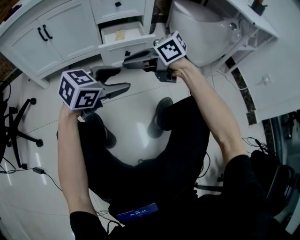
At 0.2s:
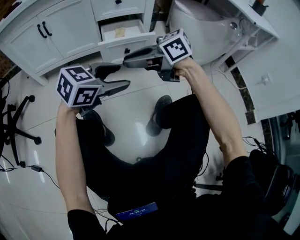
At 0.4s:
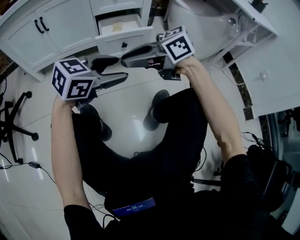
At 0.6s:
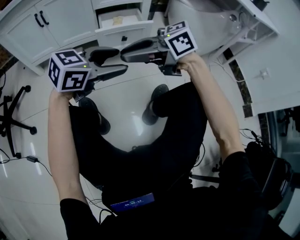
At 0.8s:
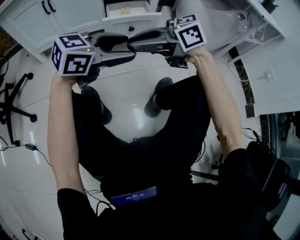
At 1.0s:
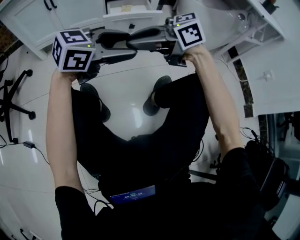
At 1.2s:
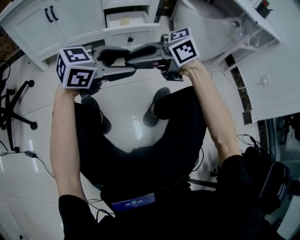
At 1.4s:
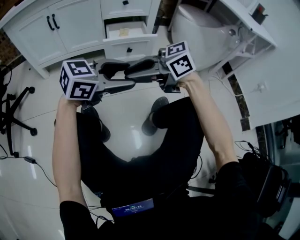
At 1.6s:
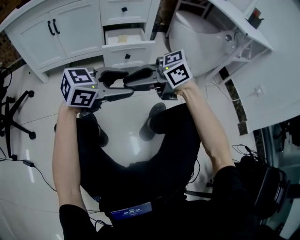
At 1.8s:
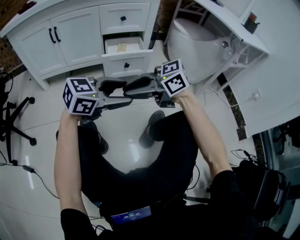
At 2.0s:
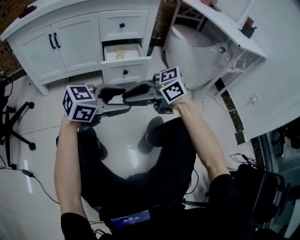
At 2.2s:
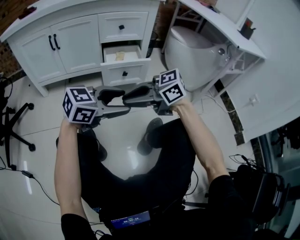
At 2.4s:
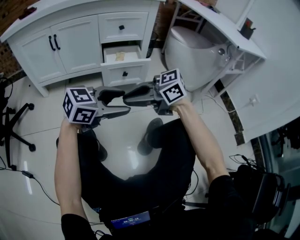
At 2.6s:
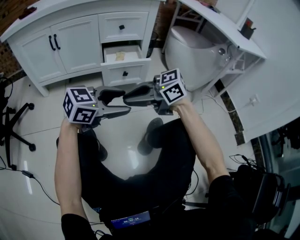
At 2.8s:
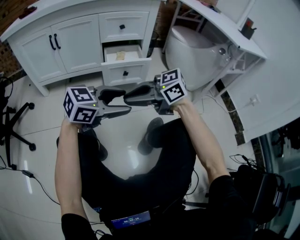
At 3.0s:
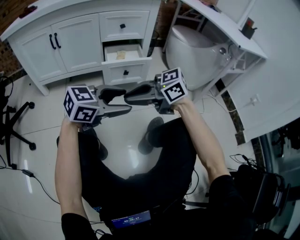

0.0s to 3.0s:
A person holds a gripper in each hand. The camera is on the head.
0.0s to 1.6s: The right gripper shifts by some 10 cm. The left gripper shifts by about 5 cm.
1.6s to 3.0s: The two grippers keep their place.

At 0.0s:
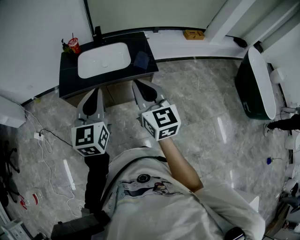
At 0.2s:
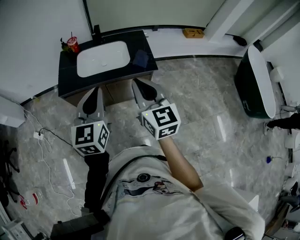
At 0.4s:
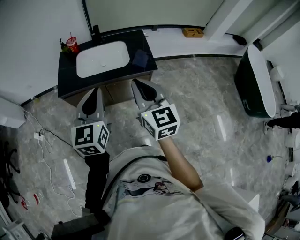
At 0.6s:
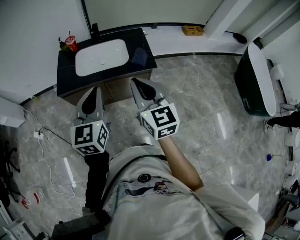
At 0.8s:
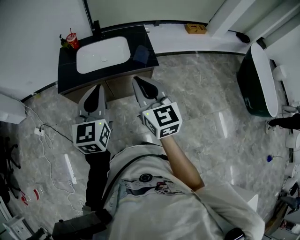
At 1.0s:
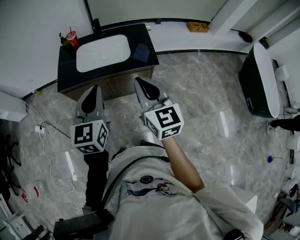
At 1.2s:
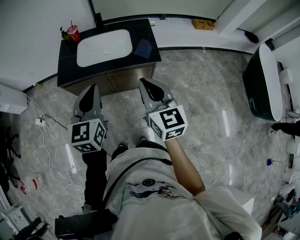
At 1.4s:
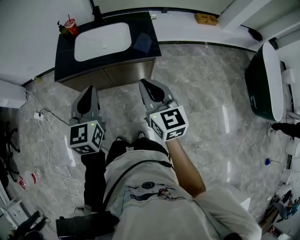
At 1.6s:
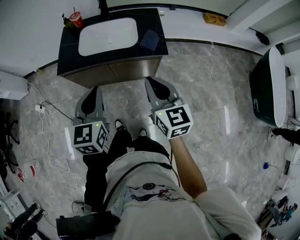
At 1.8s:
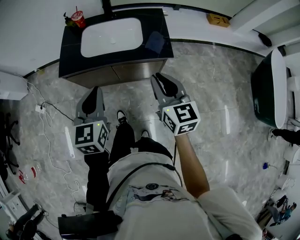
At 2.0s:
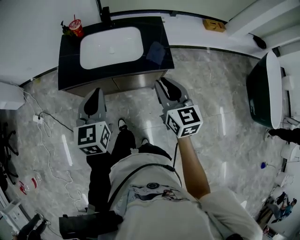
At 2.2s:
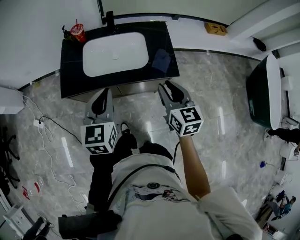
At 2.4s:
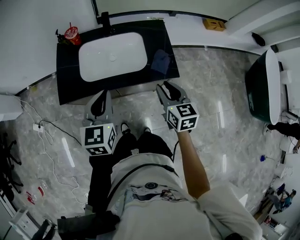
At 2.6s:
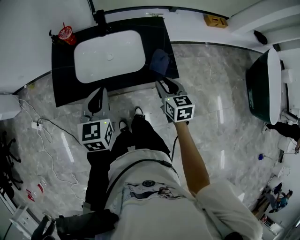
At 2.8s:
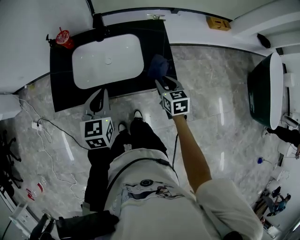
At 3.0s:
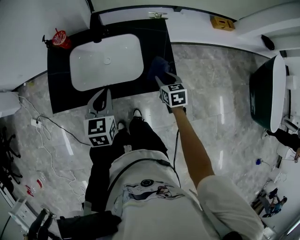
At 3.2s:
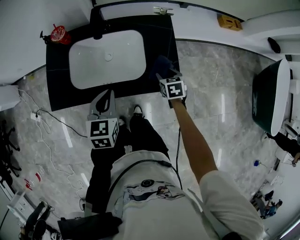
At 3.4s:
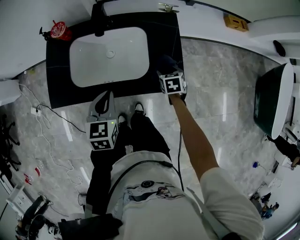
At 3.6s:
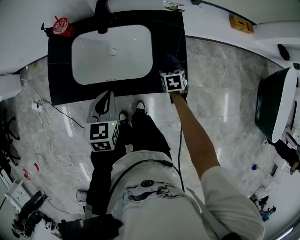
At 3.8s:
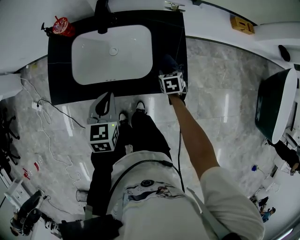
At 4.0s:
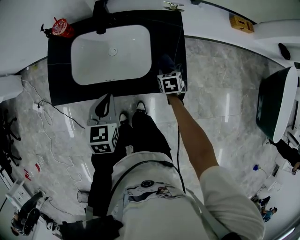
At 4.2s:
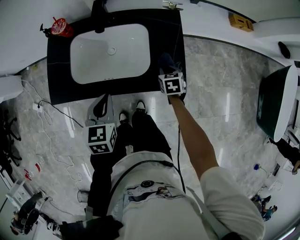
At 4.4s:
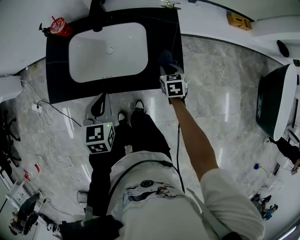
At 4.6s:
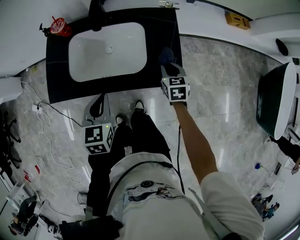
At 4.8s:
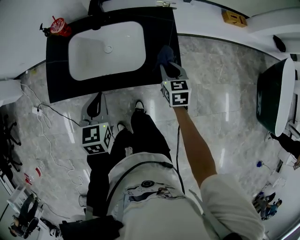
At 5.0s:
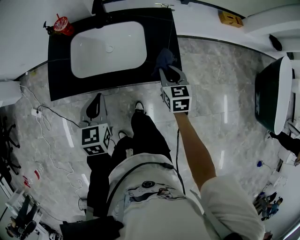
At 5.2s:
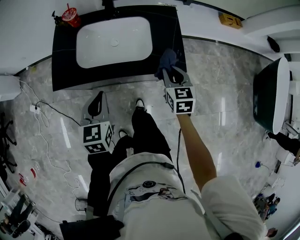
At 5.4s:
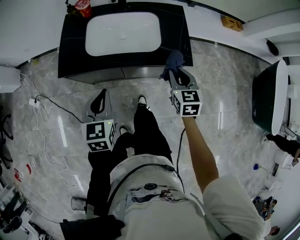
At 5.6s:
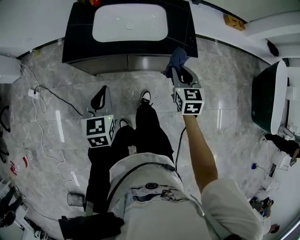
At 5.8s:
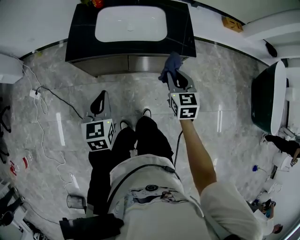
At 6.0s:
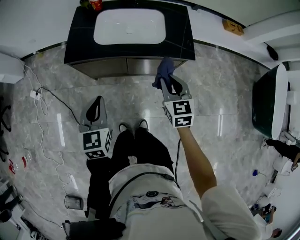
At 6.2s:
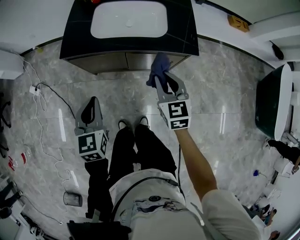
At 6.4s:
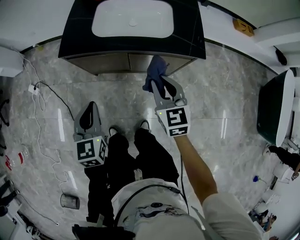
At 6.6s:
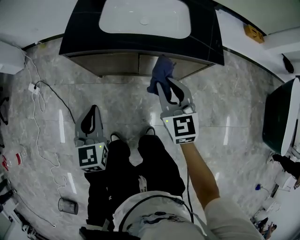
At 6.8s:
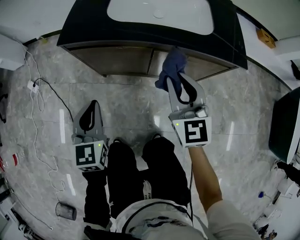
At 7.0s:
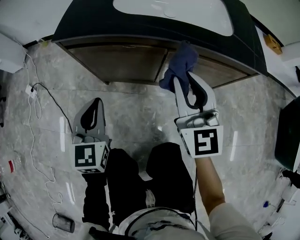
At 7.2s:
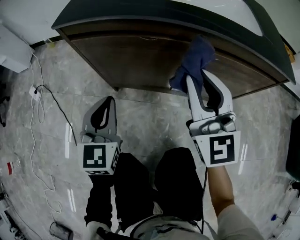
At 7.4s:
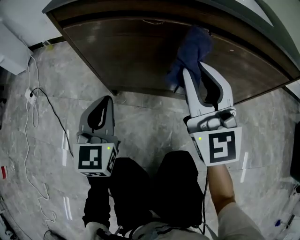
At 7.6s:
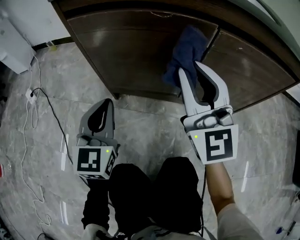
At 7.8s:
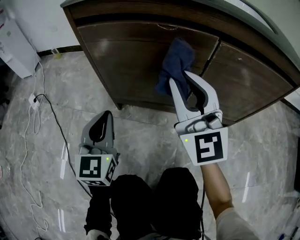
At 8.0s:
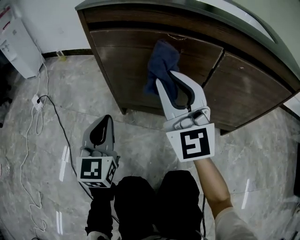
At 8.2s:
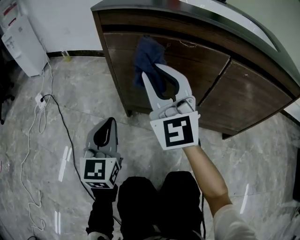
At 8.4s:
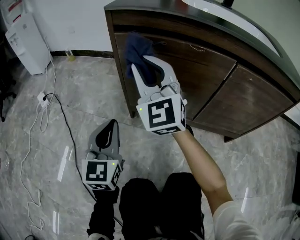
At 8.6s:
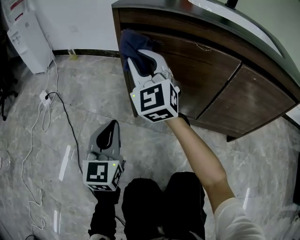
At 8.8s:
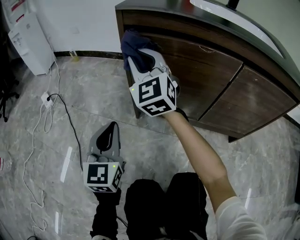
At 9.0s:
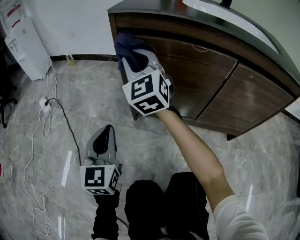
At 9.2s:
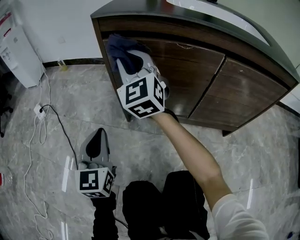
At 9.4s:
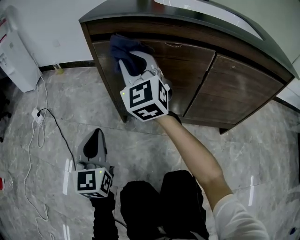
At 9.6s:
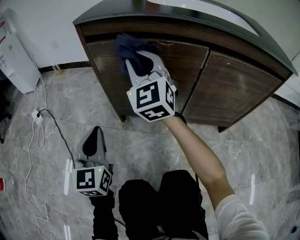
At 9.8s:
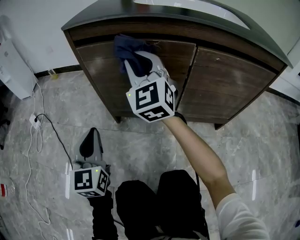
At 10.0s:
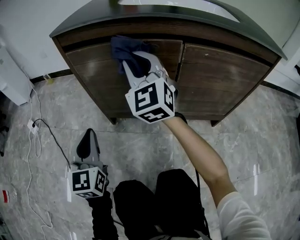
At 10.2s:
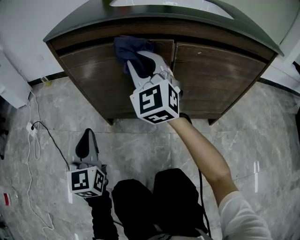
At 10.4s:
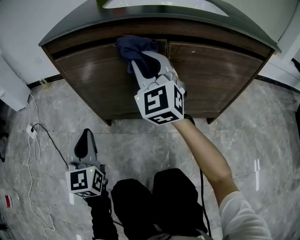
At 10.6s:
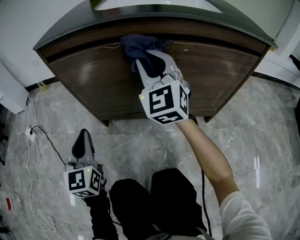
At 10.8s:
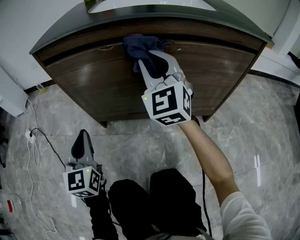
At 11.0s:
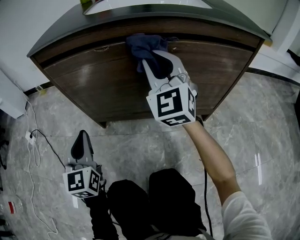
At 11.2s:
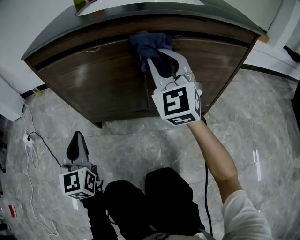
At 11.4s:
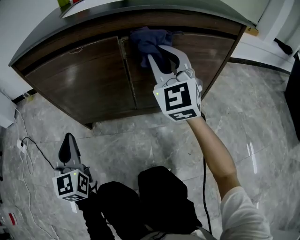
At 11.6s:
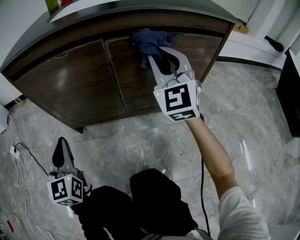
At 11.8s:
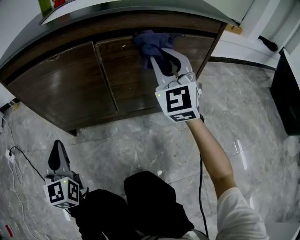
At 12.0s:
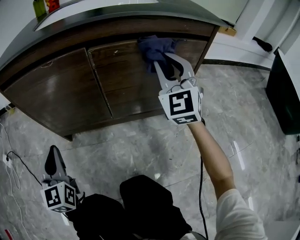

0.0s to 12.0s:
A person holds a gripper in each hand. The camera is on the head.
0.0s to 1.6s: The right gripper travels downward and to the right by roughly 10 cm; the left gripper is displaced downward by some 10 cm.
1.6s to 3.0s: The grippers both shift forward and downward by some 35 cm. The right gripper tips its fingers downward by approximately 30 degrees, and opens its fingers.
3.0s to 4.4s: The right gripper is displaced downward by about 5 cm, and opens, then closes once more.
4.4s to 6.0s: The left gripper travels backward and to the left by about 25 cm. The right gripper goes some 35 cm backward, upward and to the left, and turns by some 30 degrees.
6.0s to 7.6s: The left gripper moves downward, about 40 cm, while the right gripper goes approximately 35 cm downward and to the left, and tips its fingers upward by about 40 degrees.
7.6s to 9.0s: The left gripper is displaced to the left by some 15 cm. Meanwhile the right gripper moves to the left and forward, some 30 cm.
9.0s to 10.4s: The right gripper moves to the right, roughly 25 cm, while the left gripper travels to the right by approximately 10 cm.
10.4s to 12.0s: The right gripper is displaced to the right by roughly 25 cm. The left gripper moves to the right, about 5 cm.

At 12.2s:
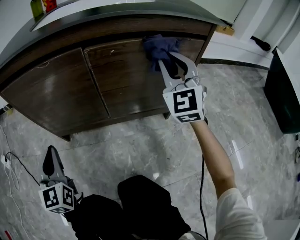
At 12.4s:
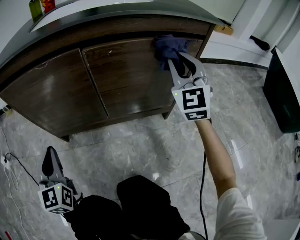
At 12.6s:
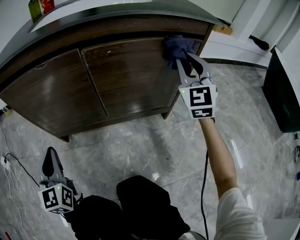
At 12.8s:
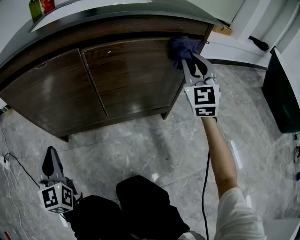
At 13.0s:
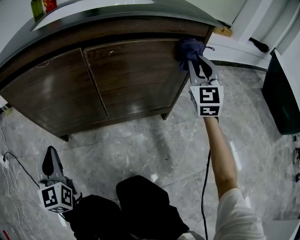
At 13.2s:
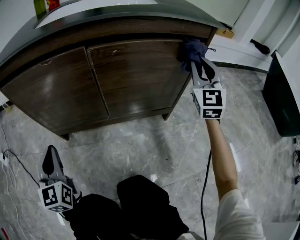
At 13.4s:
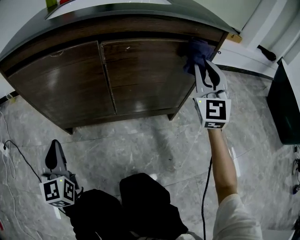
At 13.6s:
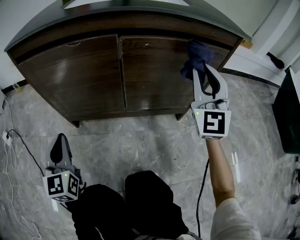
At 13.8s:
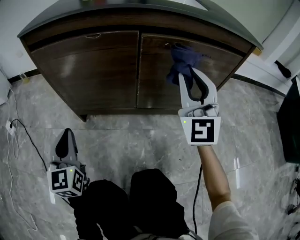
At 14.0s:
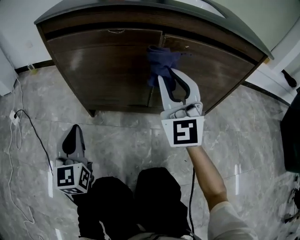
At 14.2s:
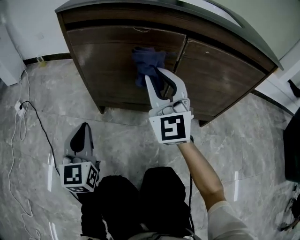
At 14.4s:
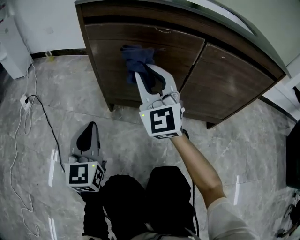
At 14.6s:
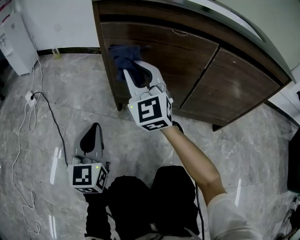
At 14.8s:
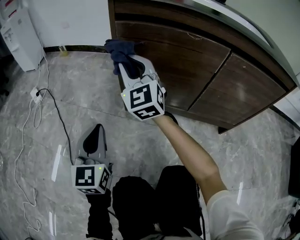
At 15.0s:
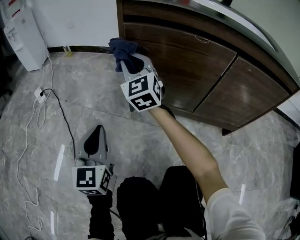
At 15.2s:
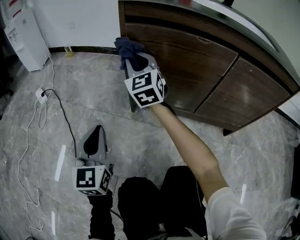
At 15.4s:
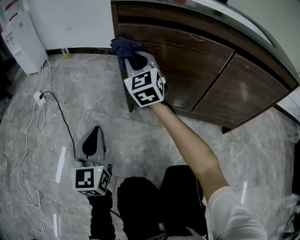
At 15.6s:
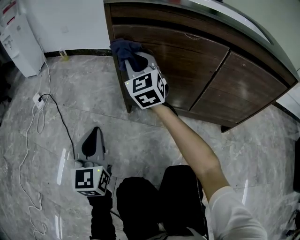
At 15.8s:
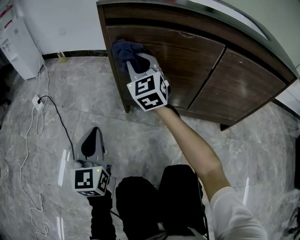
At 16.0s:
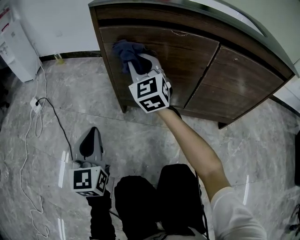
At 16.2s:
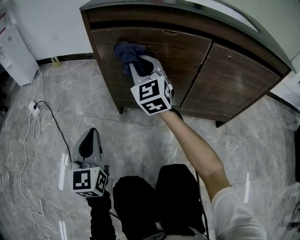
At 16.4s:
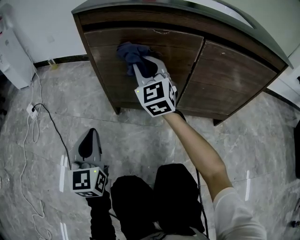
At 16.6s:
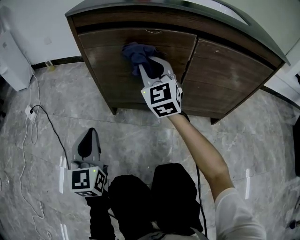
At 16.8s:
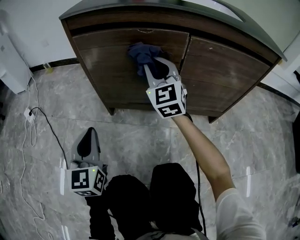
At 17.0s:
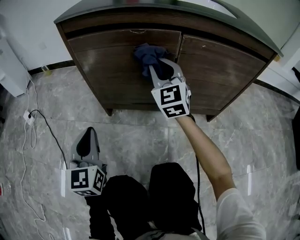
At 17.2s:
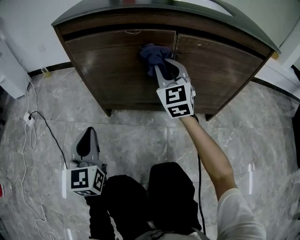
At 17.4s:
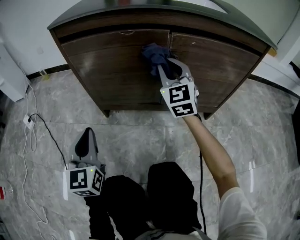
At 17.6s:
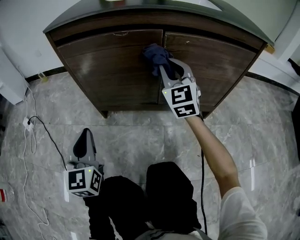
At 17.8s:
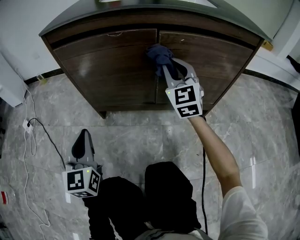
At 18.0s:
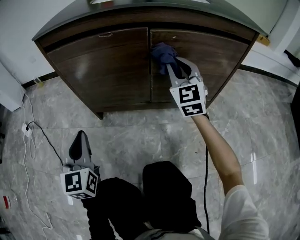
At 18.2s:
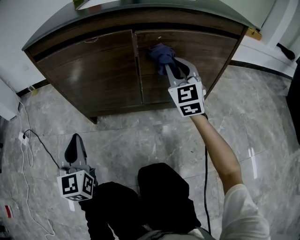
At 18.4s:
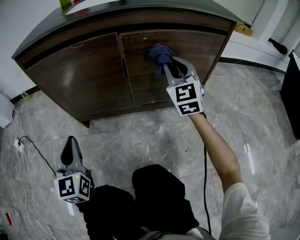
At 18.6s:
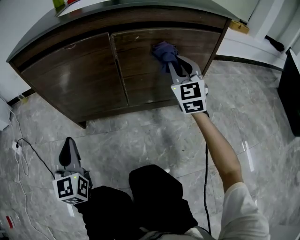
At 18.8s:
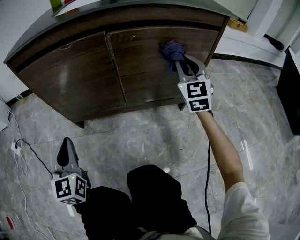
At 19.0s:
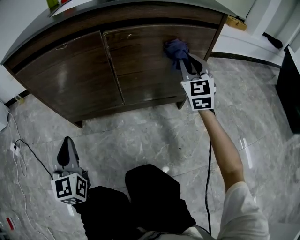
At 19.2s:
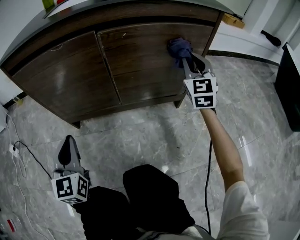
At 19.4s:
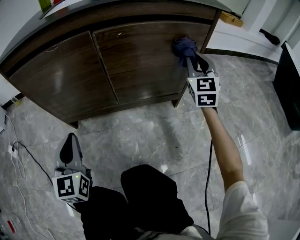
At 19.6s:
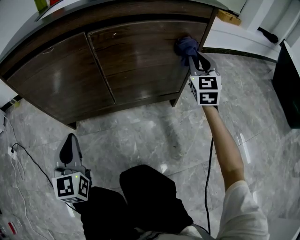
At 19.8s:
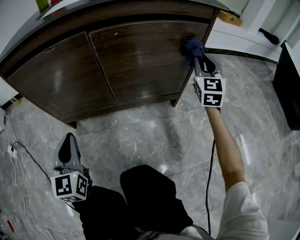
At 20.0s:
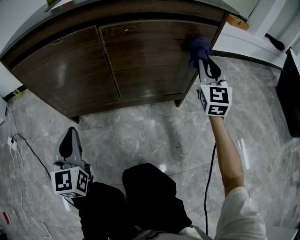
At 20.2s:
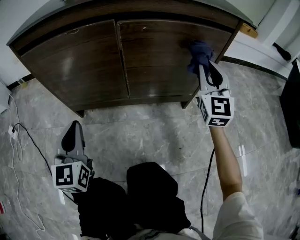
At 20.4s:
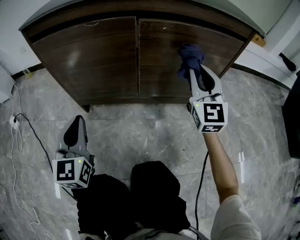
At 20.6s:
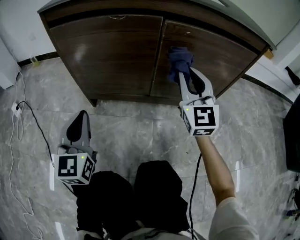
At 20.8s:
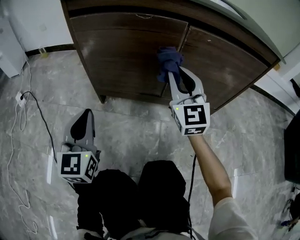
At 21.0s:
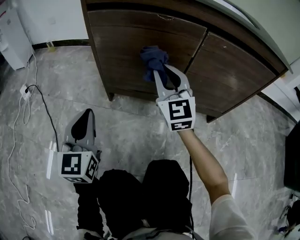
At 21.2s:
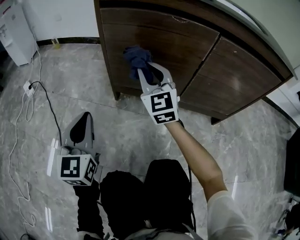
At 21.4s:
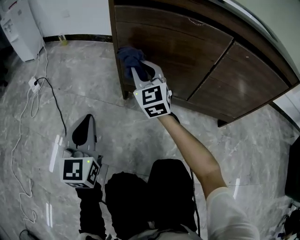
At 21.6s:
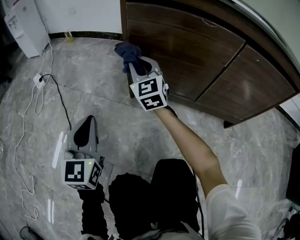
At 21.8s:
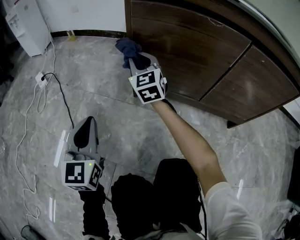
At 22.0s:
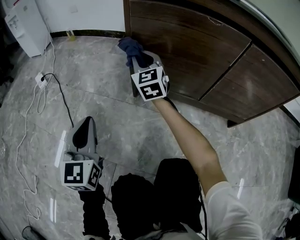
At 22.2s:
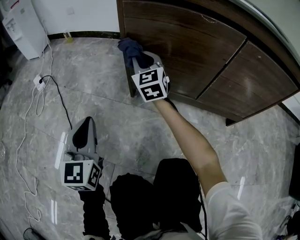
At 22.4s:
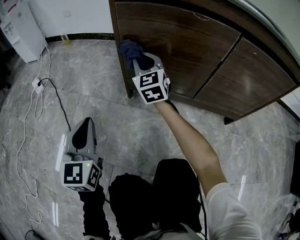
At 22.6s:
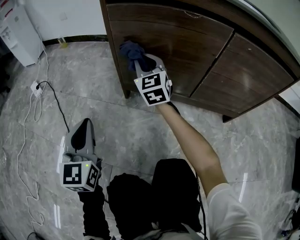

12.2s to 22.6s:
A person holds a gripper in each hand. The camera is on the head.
12.2s to 13.6s: The right gripper moves backward, roughly 5 cm, and travels to the right and back again, about 10 cm each way.
13.6s to 15.2s: The right gripper moves to the left and forward, roughly 50 cm, and turns by some 40 degrees, while the left gripper moves to the left, about 15 cm.
15.2s to 16.6s: The left gripper is displaced to the right by roughly 10 cm; the right gripper travels to the right by about 20 cm.
16.6s to 18.2s: The right gripper moves to the right, about 25 cm. The left gripper heads to the right, covering approximately 5 cm.
18.2s to 19.6s: The left gripper moves to the right, some 10 cm. The right gripper shifts roughly 25 cm to the right.
19.6s to 21.2s: The left gripper moves about 20 cm. The right gripper ends up about 50 cm from where it was, and swivels roughly 40 degrees.
21.2s to 22.6s: The right gripper heads forward, covering roughly 5 cm, and goes to the left and returns, about 10 cm each way.
